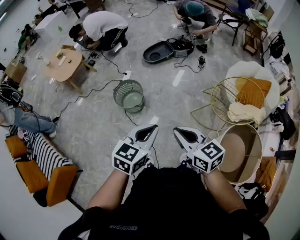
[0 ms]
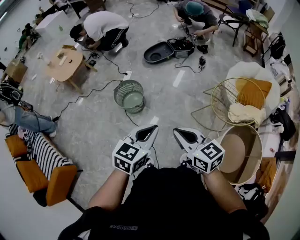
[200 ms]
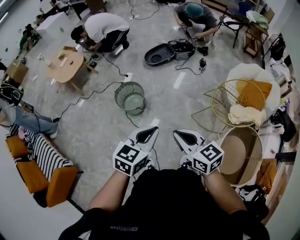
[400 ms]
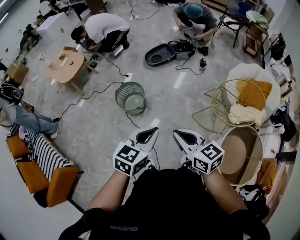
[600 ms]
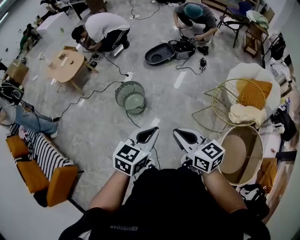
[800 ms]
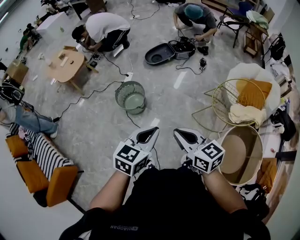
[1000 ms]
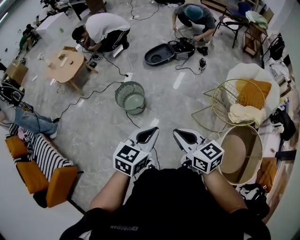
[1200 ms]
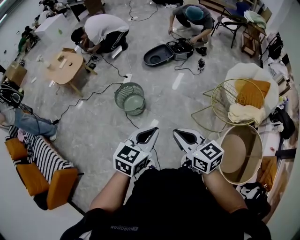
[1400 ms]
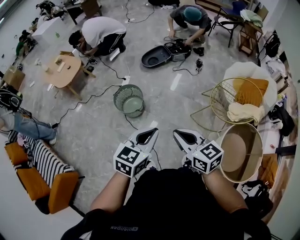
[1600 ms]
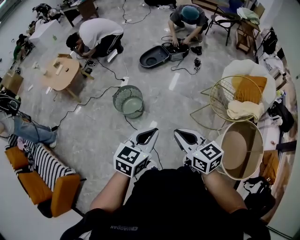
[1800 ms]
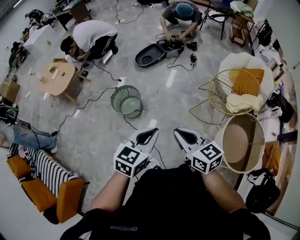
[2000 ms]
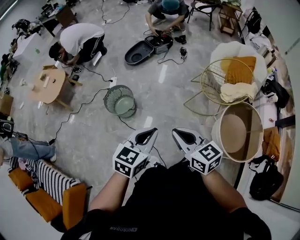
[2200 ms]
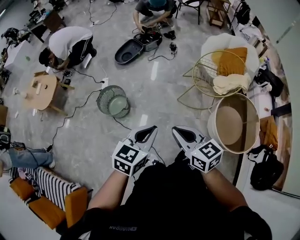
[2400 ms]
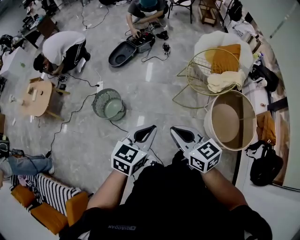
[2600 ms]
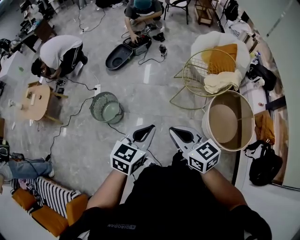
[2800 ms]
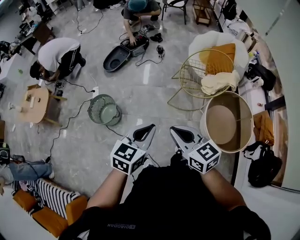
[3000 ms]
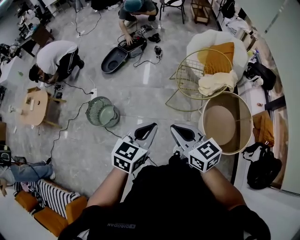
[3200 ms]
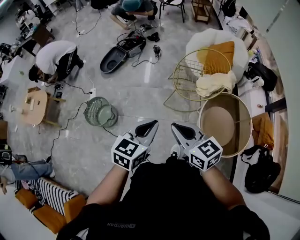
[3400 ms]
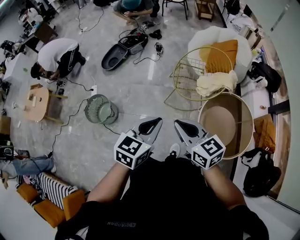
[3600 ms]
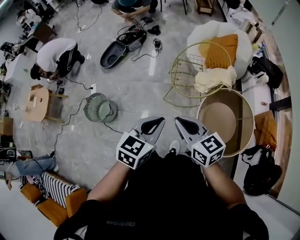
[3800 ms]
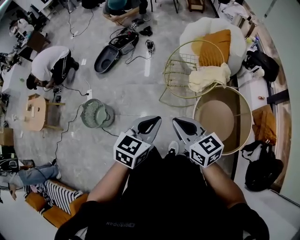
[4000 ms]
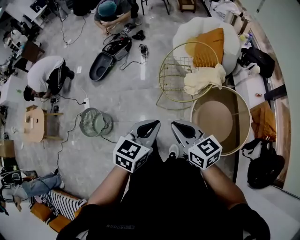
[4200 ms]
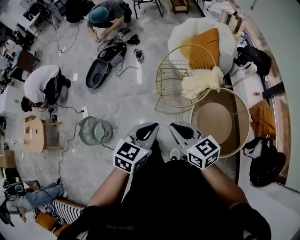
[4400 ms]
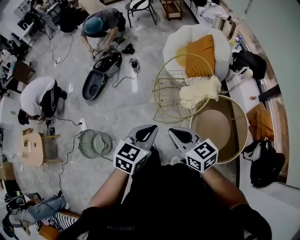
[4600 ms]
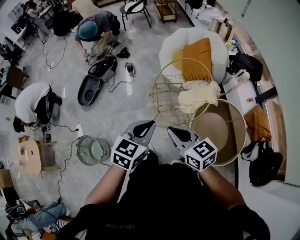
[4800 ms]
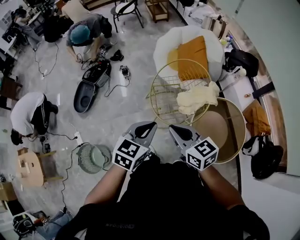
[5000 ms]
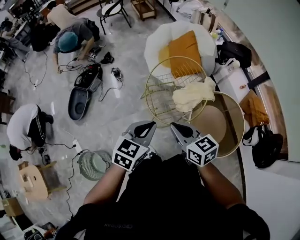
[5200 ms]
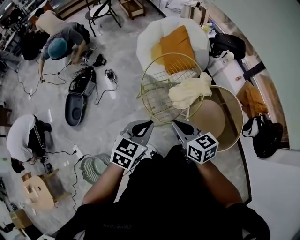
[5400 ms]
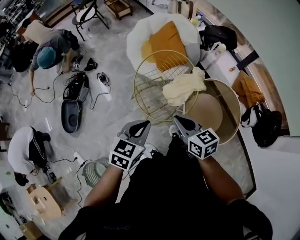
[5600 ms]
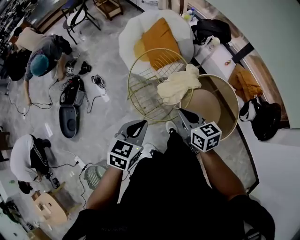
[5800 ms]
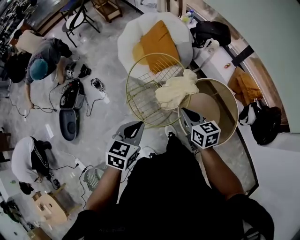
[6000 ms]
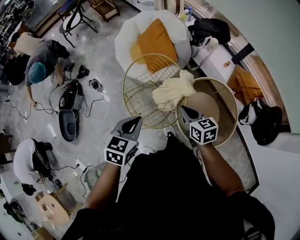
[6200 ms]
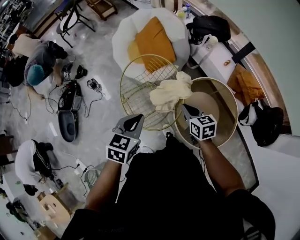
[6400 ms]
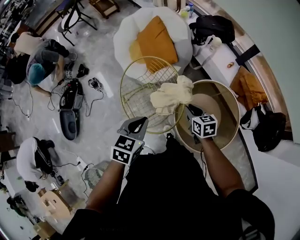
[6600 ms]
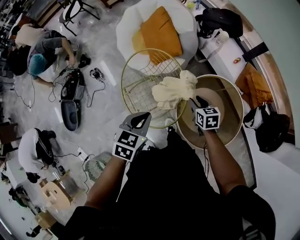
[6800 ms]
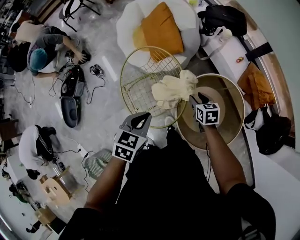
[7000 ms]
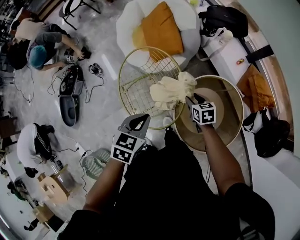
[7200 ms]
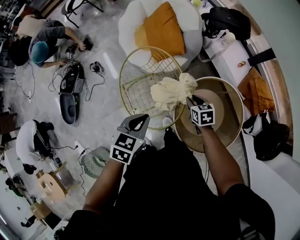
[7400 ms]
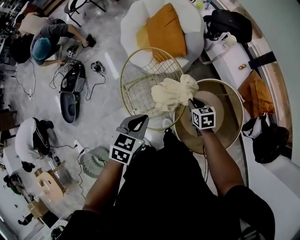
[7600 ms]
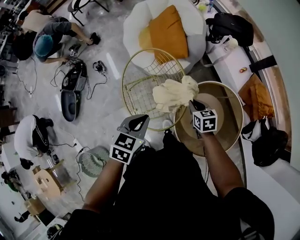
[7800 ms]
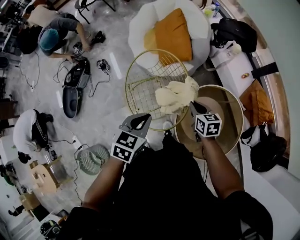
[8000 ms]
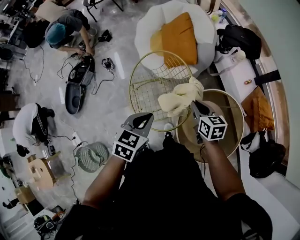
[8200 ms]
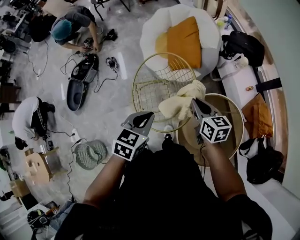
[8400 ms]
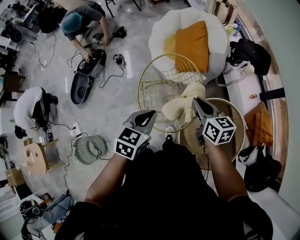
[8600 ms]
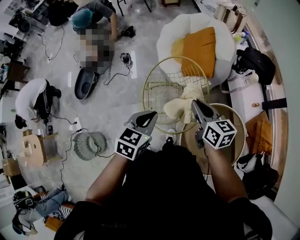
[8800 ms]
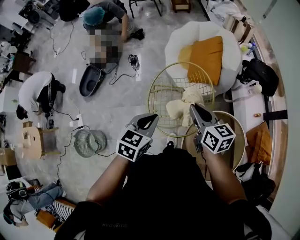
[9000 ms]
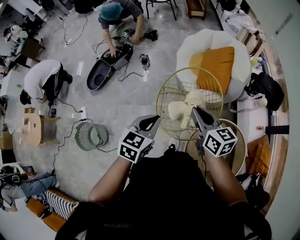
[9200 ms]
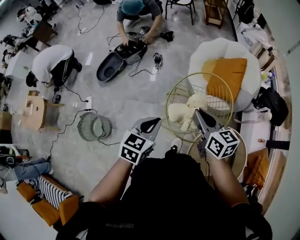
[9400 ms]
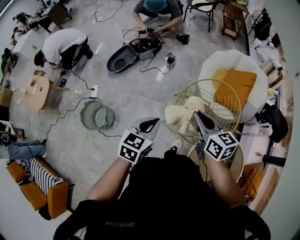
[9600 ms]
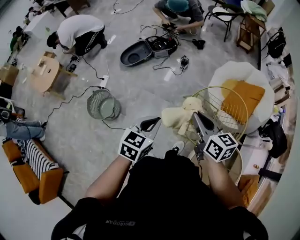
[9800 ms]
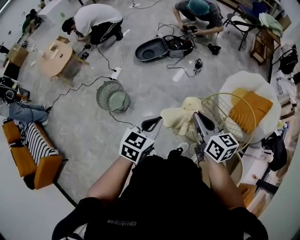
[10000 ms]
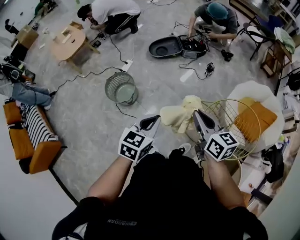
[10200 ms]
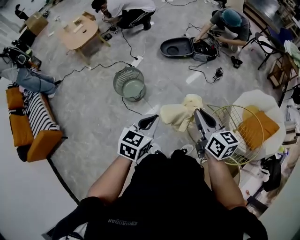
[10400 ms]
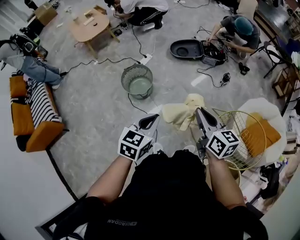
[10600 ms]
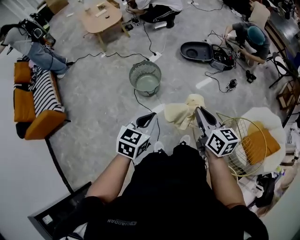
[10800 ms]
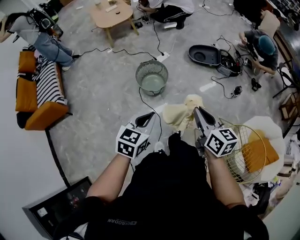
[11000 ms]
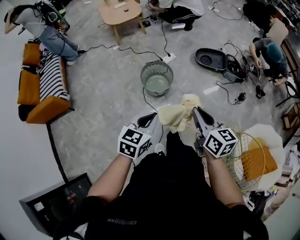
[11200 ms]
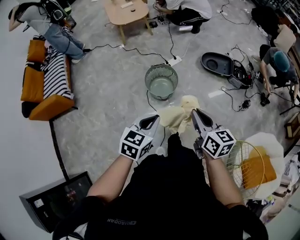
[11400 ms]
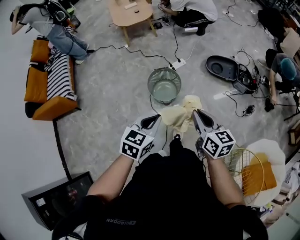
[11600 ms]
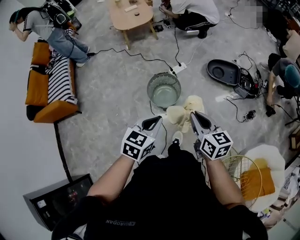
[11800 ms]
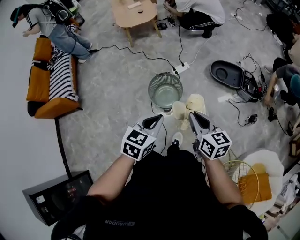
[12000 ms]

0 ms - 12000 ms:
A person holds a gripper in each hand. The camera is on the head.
0 ms - 1600 ms: The grippers move only a little.
1600 ms - 3000 ms: The two grippers go some 10 cm to the right. The left gripper changes its angle by roughly 20 degrees; the right gripper rotates roughly 20 degrees.
3000 ms - 4400 ms: Both grippers move to the right and forward, approximately 25 cm.
4400 ms - 6000 ms: The right gripper moves approximately 25 cm, and turns by about 40 degrees. The left gripper ends up roughly 20 cm from where it was, and swivels about 30 degrees.
6000 ms - 7600 ms: The left gripper shifts about 15 cm forward, to the right and downward; the right gripper travels downward, forward and to the right by approximately 25 cm, rotates some 20 degrees, and opens, then closes again.
7600 ms - 9000 ms: The right gripper goes about 25 cm upward and to the left, and tips its fingers upward by roughly 30 degrees, while the left gripper shifts approximately 10 cm to the left and upward, and turns by roughly 20 degrees.
9000 ms - 10400 ms: Both grippers are carried approximately 40 cm. The left gripper swivels roughly 50 degrees. Meanwhile the right gripper changes its angle by roughly 50 degrees.
10400 ms - 12000 ms: The right gripper shifts by approximately 30 cm, and changes its angle by some 30 degrees. Meanwhile the left gripper ends up some 25 cm from where it was, and changes its angle by roughly 30 degrees.

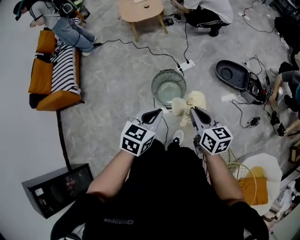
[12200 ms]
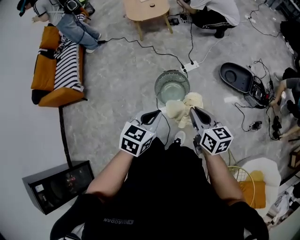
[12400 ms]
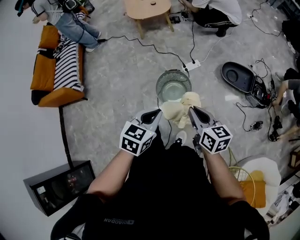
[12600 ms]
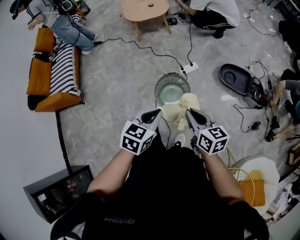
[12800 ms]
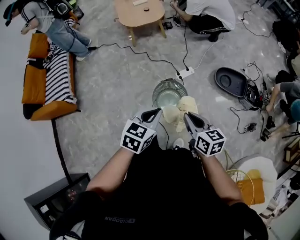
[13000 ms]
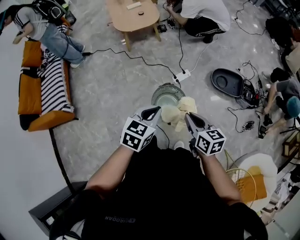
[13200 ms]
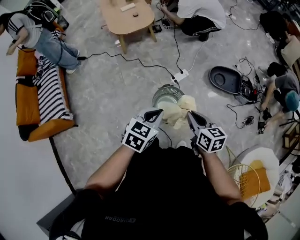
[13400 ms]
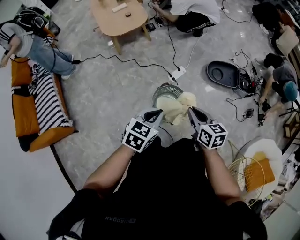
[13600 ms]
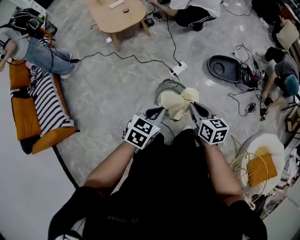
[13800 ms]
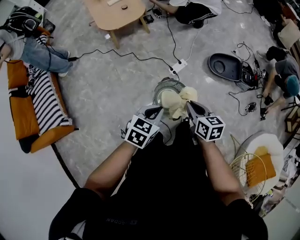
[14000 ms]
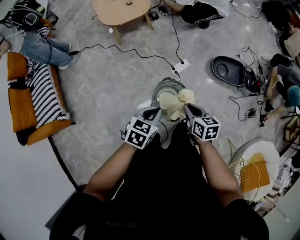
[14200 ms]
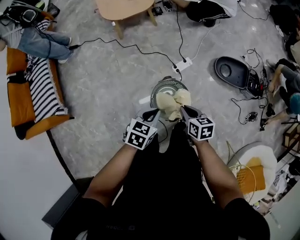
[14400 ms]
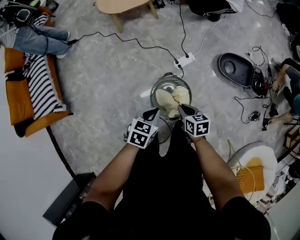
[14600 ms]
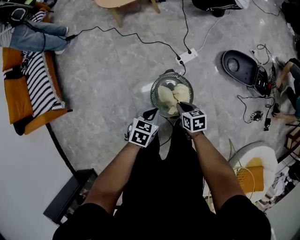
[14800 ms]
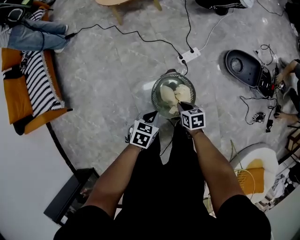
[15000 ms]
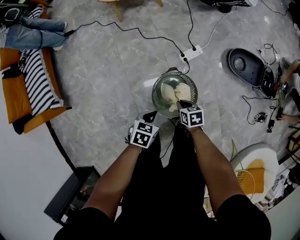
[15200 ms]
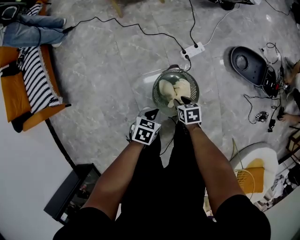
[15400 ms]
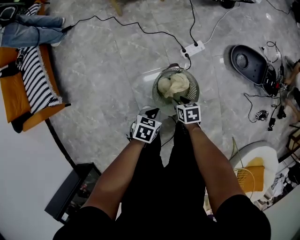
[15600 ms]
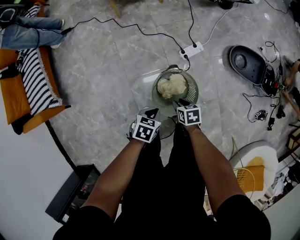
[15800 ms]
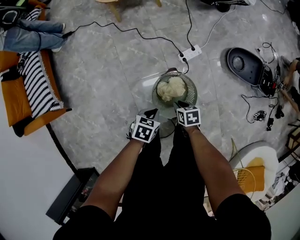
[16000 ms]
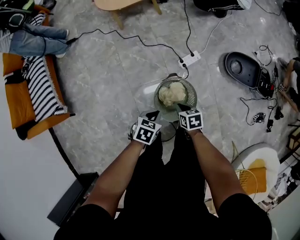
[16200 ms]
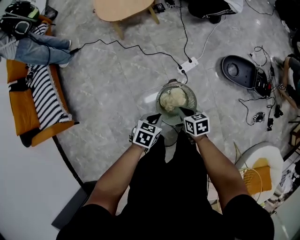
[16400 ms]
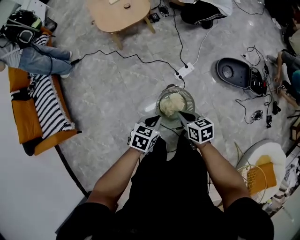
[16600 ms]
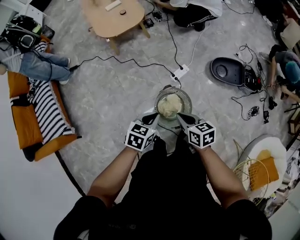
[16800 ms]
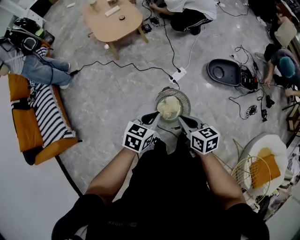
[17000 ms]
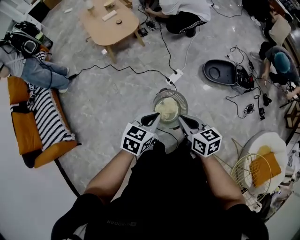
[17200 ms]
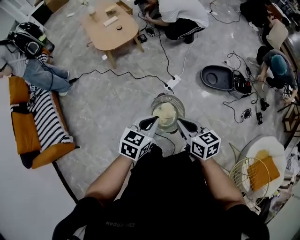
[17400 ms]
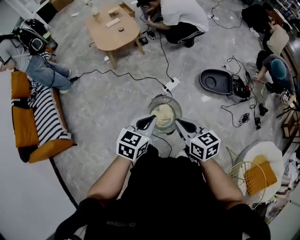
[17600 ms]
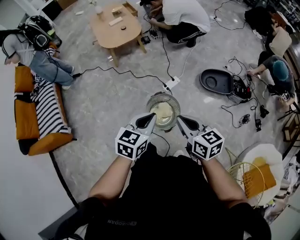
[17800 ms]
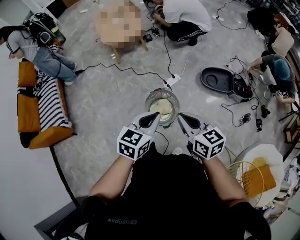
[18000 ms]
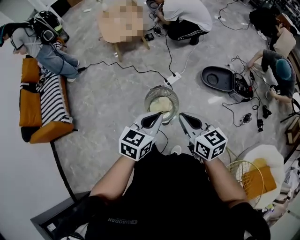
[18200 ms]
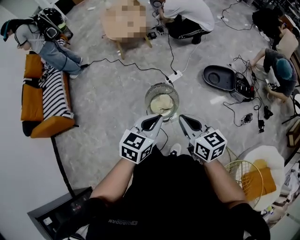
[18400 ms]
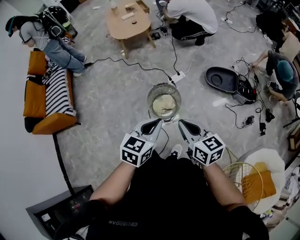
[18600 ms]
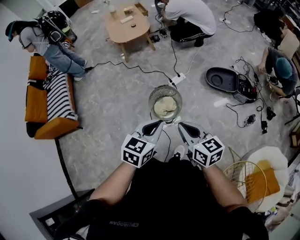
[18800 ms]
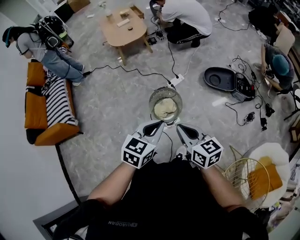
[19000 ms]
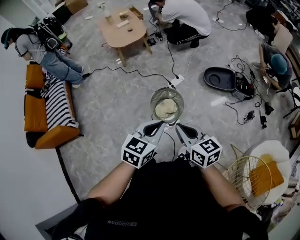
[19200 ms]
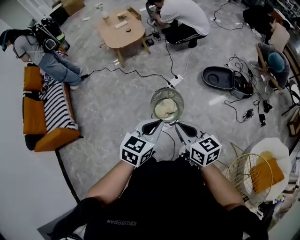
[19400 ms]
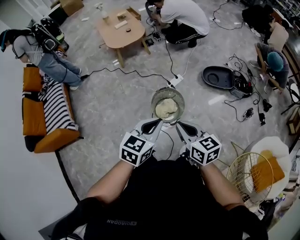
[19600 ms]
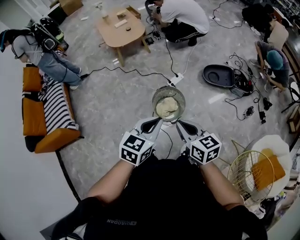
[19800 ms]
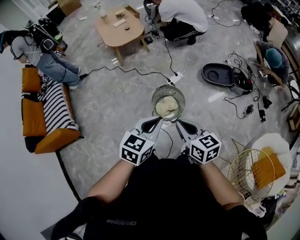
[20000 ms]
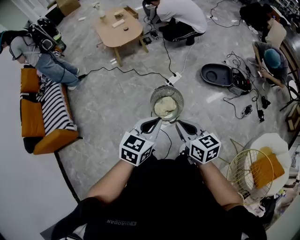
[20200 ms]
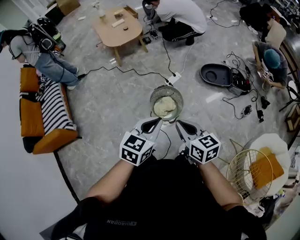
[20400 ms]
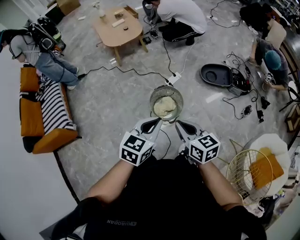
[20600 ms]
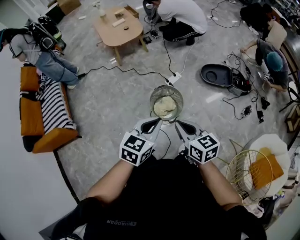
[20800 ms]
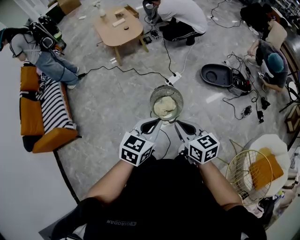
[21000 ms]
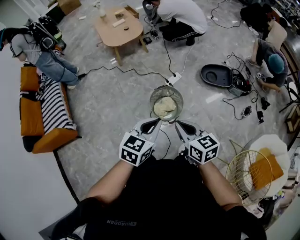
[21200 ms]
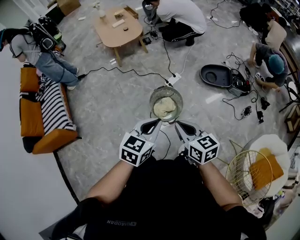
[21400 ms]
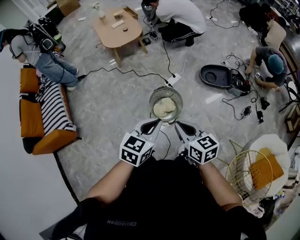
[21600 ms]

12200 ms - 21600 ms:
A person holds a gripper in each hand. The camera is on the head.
12200 ms - 13800 ms: Both grippers move forward and to the left, some 20 cm. The left gripper rotates about 20 degrees.
13800 ms - 15400 ms: The two grippers go some 35 cm downward. The left gripper changes its angle by roughly 30 degrees; the right gripper turns by about 40 degrees, and opens.
15400 ms - 17000 ms: The grippers both shift upward by roughly 30 cm. The right gripper changes its angle by roughly 30 degrees, and closes up; the left gripper changes its angle by some 30 degrees.
17000 ms - 18400 ms: Both grippers travel together backward, to the right and upward, some 25 cm.
18400 ms - 20000 ms: The two grippers go about 10 cm to the left.
20000 ms - 21600 ms: Both grippers stay about where they are.

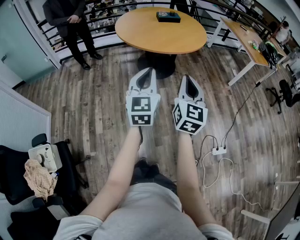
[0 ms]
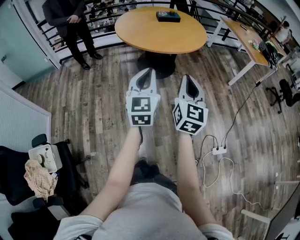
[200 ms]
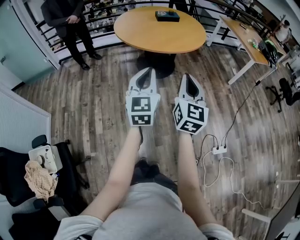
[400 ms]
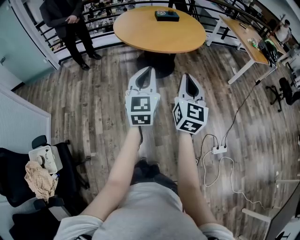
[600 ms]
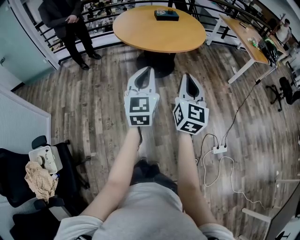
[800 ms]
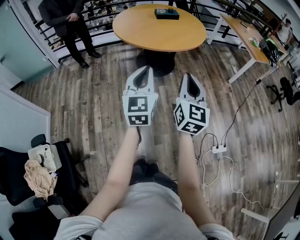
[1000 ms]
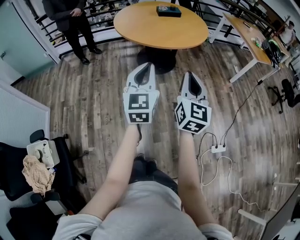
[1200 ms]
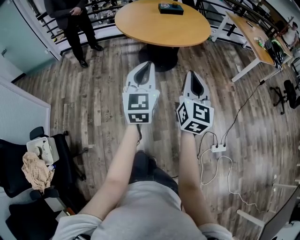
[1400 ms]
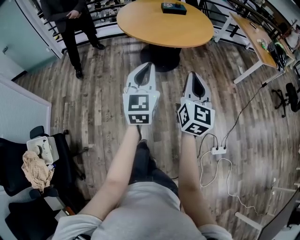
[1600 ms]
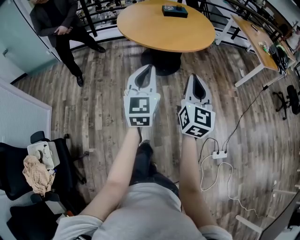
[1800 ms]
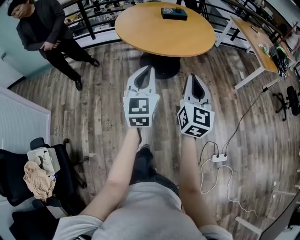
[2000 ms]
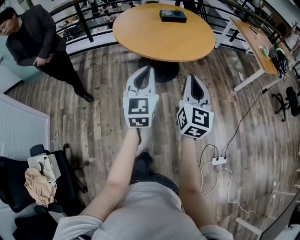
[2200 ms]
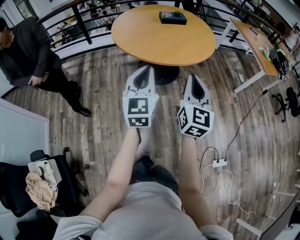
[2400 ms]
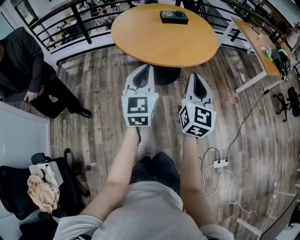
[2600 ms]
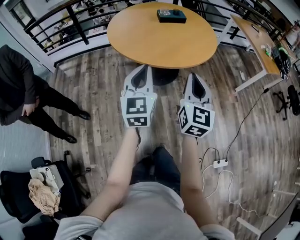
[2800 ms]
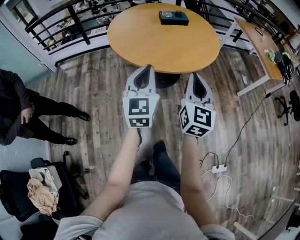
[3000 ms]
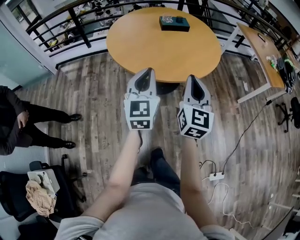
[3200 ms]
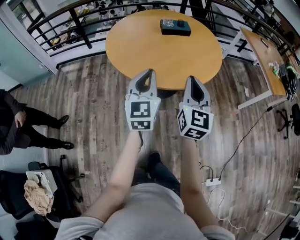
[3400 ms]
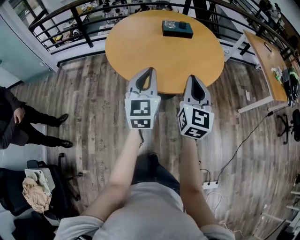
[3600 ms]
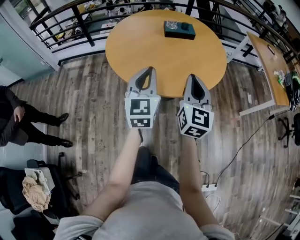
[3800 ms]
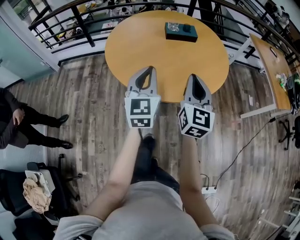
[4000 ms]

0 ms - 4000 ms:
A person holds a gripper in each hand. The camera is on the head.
0 ms - 1400 ms: The grippers stay close to where they were, moving slightly.
1400 ms - 2600 ms: The grippers both shift forward by approximately 20 cm.
2600 ms - 4000 ms: Both grippers move forward, about 30 cm.
